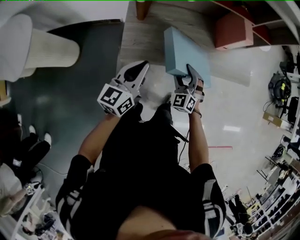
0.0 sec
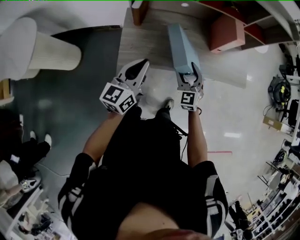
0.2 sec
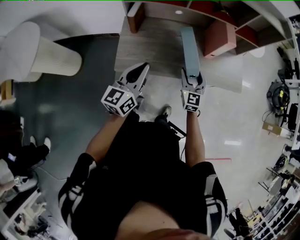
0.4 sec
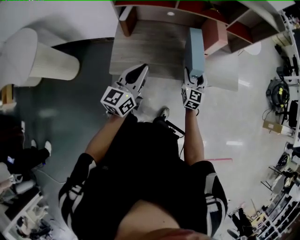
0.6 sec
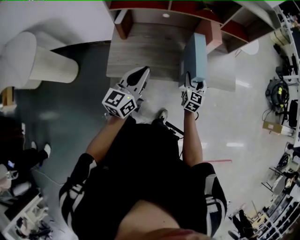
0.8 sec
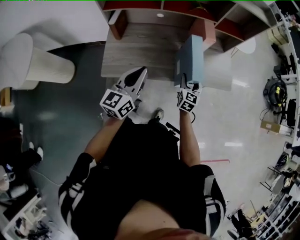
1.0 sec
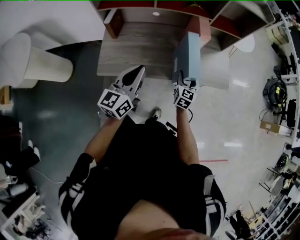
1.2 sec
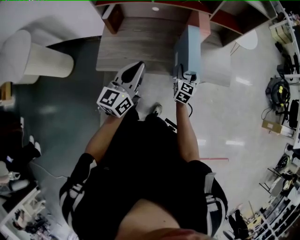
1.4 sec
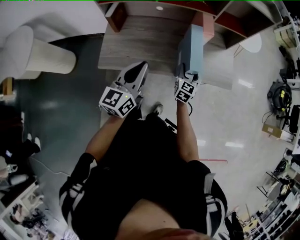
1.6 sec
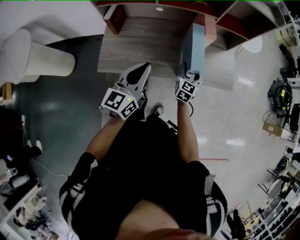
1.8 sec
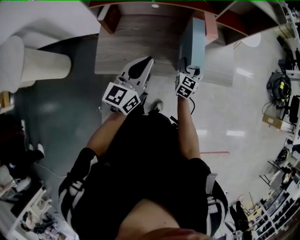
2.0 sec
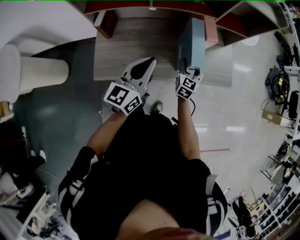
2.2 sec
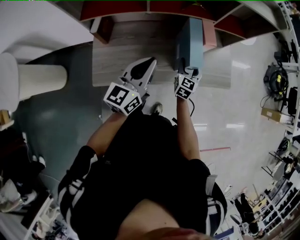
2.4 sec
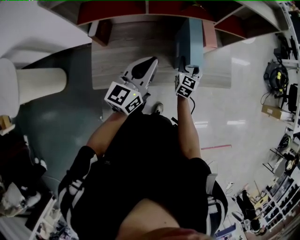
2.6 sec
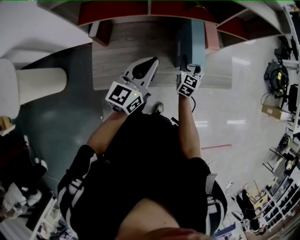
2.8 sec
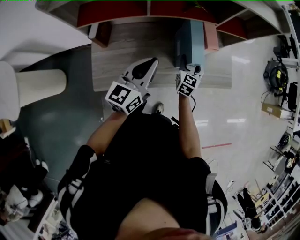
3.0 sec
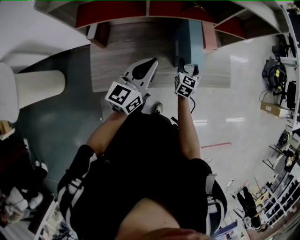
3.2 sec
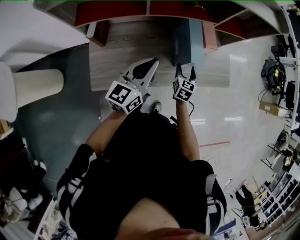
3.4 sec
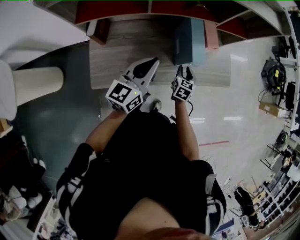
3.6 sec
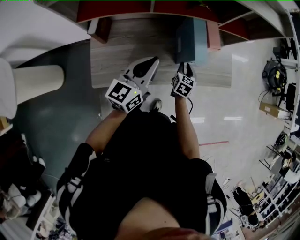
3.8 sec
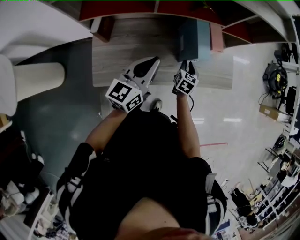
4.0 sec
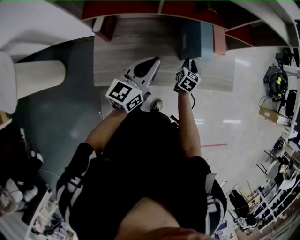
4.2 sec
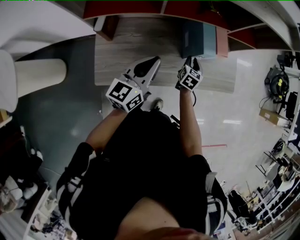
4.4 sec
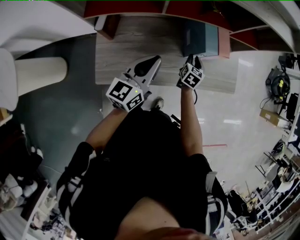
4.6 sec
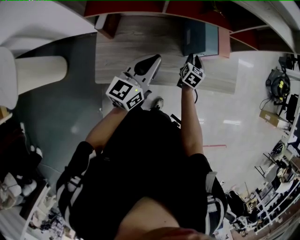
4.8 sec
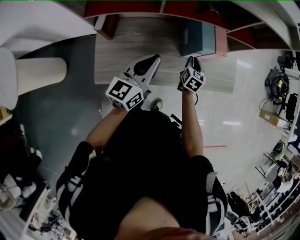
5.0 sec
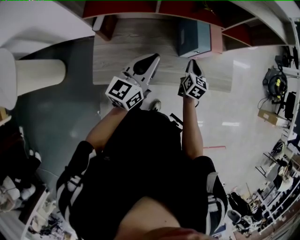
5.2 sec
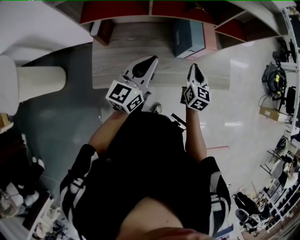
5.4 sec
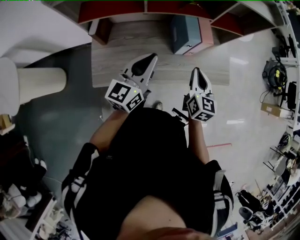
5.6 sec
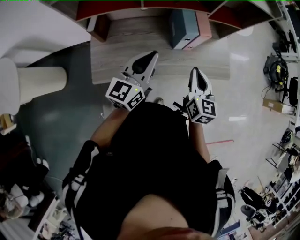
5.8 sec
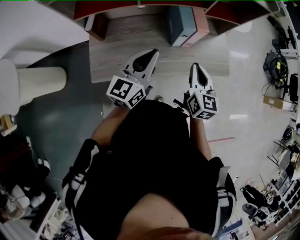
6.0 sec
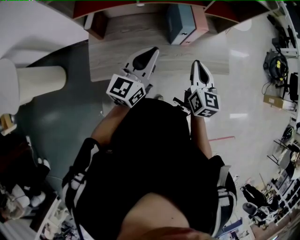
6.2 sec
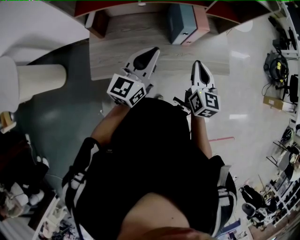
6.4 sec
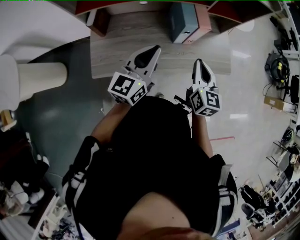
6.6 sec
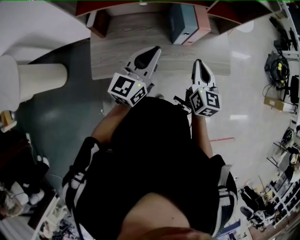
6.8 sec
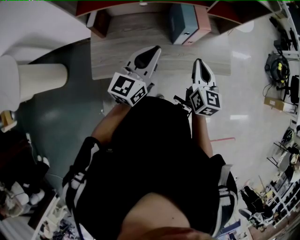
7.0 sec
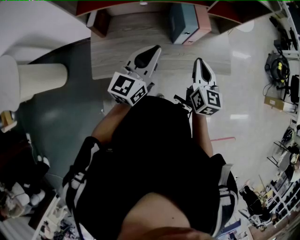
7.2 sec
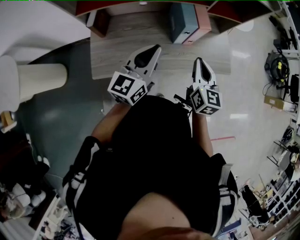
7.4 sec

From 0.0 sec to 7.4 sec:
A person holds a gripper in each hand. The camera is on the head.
From 0.0 sec to 1.4 sec: The right gripper travels to the right and forward by approximately 25 cm, and twists roughly 50 degrees clockwise, seen from behind. Meanwhile the left gripper shifts roughly 20 cm to the right and upward.
From 1.4 sec to 3.0 sec: The left gripper is displaced forward by roughly 15 cm. The right gripper shifts roughly 15 cm forward and to the left.
From 3.0 sec to 4.4 sec: The right gripper is displaced downward by approximately 5 cm, and closes.
From 4.4 sec to 6.0 sec: The left gripper goes roughly 5 cm to the right. Meanwhile the right gripper heads upward and backward, covering roughly 25 cm, and rotates some 30 degrees.
From 6.0 sec to 7.4 sec: Both grippers stay about where they are.

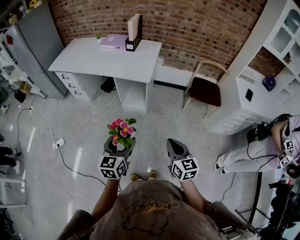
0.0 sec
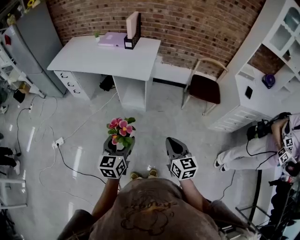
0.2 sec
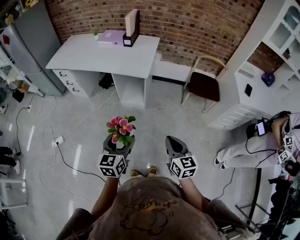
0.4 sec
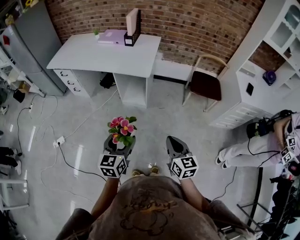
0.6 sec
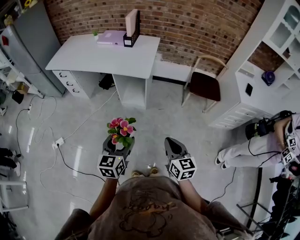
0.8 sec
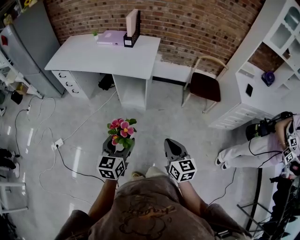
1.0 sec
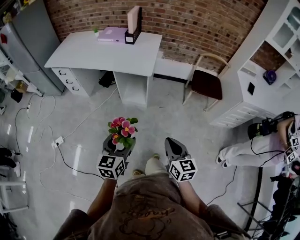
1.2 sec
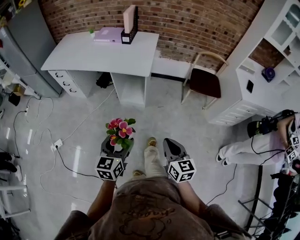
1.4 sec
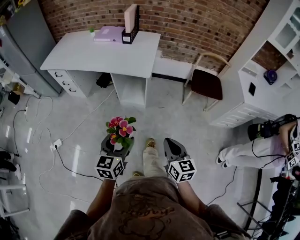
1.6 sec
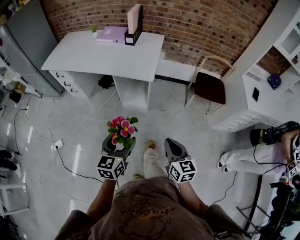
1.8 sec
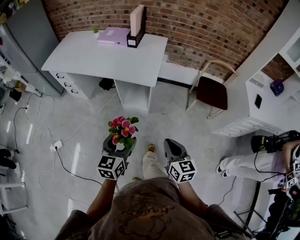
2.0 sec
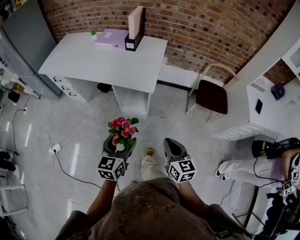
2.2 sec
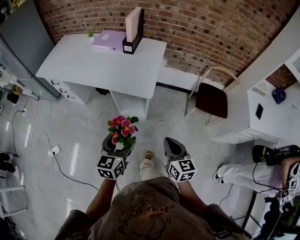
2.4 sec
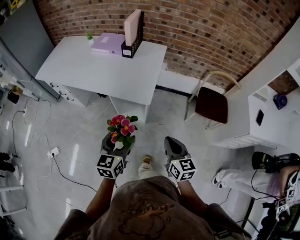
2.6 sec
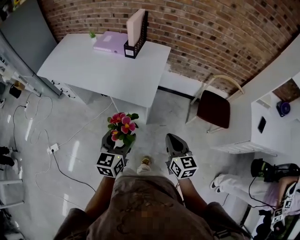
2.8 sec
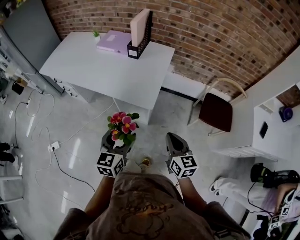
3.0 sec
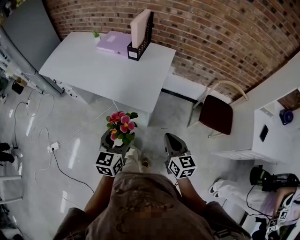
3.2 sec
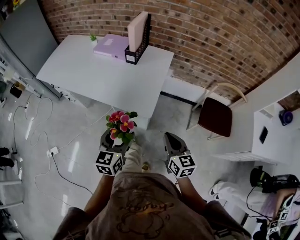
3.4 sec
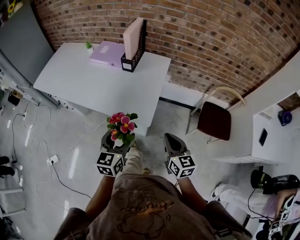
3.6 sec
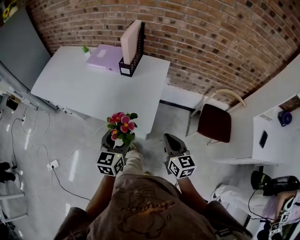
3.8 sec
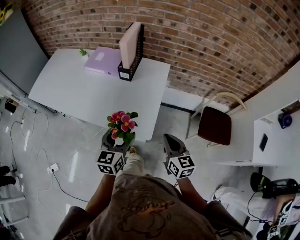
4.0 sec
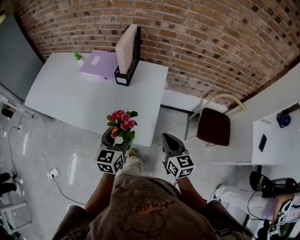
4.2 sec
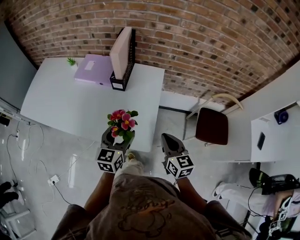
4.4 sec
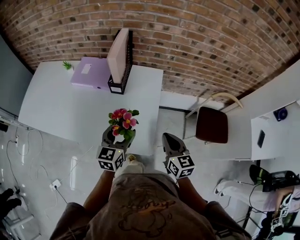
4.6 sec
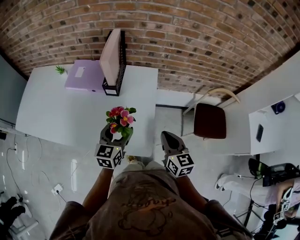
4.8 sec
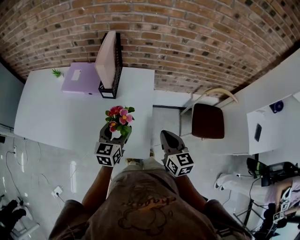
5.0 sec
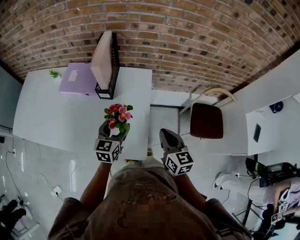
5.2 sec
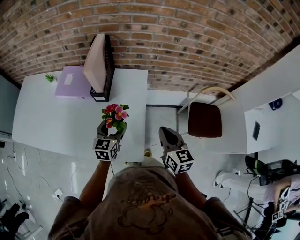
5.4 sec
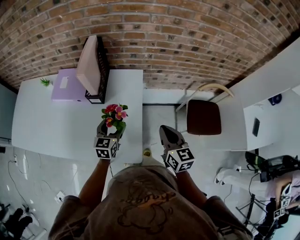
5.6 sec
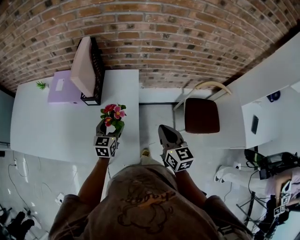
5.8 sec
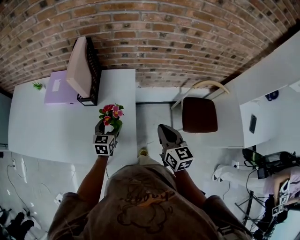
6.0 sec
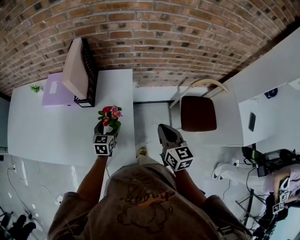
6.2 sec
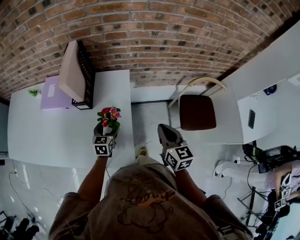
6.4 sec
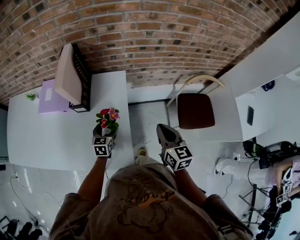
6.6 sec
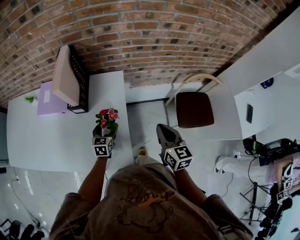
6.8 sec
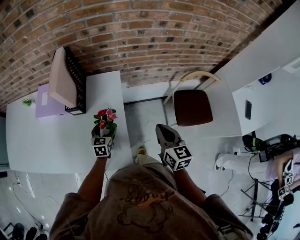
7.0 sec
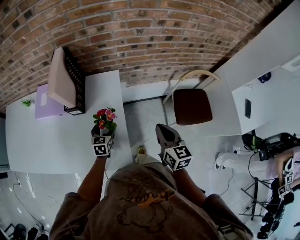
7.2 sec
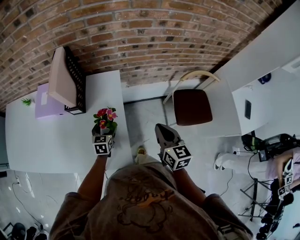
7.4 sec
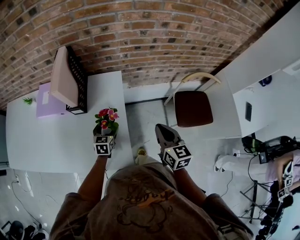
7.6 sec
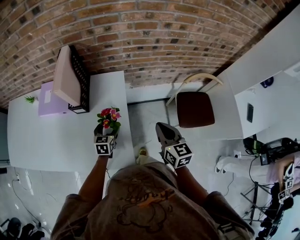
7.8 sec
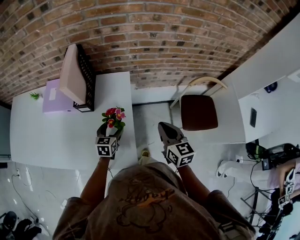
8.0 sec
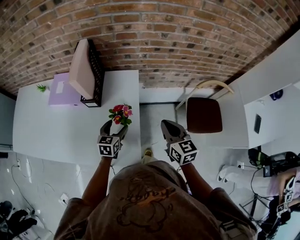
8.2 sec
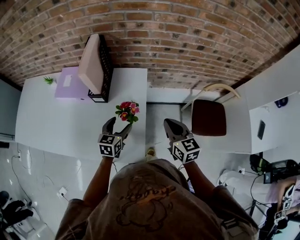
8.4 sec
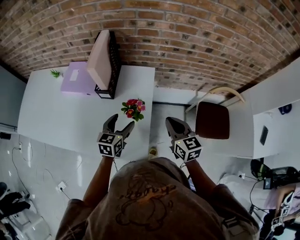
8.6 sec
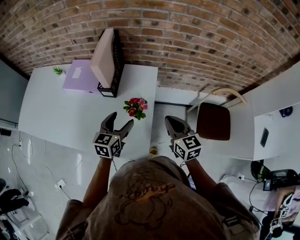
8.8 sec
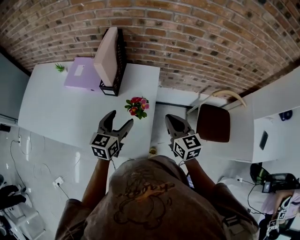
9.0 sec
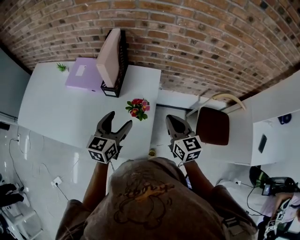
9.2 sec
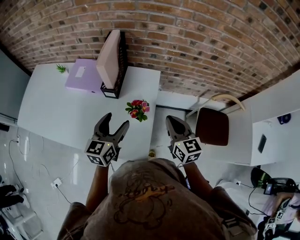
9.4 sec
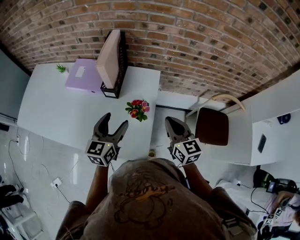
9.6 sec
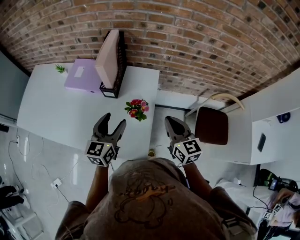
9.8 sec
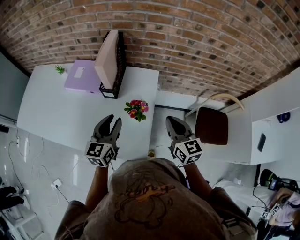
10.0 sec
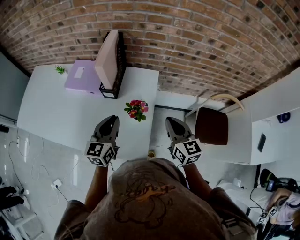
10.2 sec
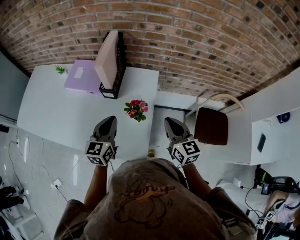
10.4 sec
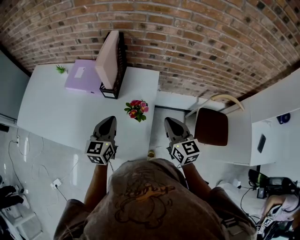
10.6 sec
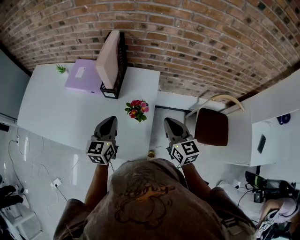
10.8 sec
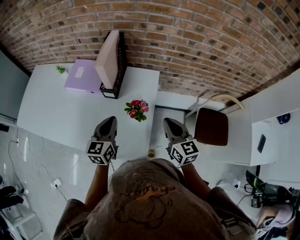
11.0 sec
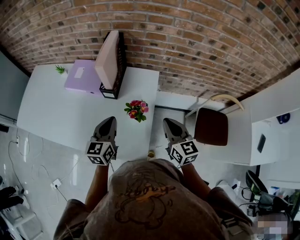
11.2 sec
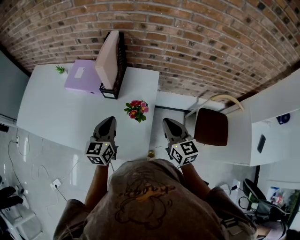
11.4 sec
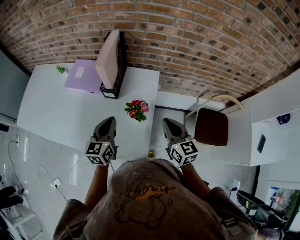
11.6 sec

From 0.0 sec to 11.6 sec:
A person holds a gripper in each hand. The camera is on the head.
From 0.0 sec to 1.4 sec: There are only small adjustments of the grippers.
From 1.4 sec to 2.8 sec: The two grippers go about 30 cm forward.
From 2.8 sec to 4.4 sec: Both grippers travel together forward, about 30 cm.
From 4.4 sec to 5.8 sec: The right gripper heads forward and to the right, covering approximately 15 cm. Meanwhile the left gripper heads forward and downward, covering approximately 20 cm.
From 5.8 sec to 7.2 sec: The right gripper shifts approximately 5 cm to the right. The left gripper is displaced downward by some 10 cm.
From 7.2 sec to 8.8 sec: The right gripper travels to the left by some 10 cm, and changes its angle by roughly 20 degrees, while the left gripper goes about 15 cm upward.
From 8.8 sec to 10.2 sec: The left gripper heads upward, covering some 5 cm, and closes up.
From 10.2 sec to 11.6 sec: The grippers make only small movements.

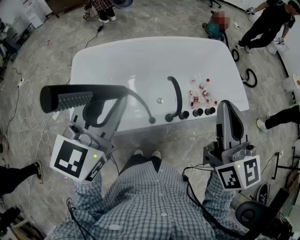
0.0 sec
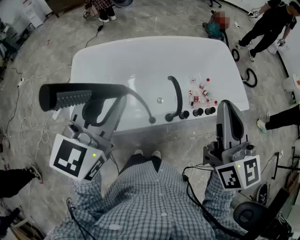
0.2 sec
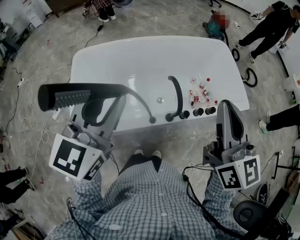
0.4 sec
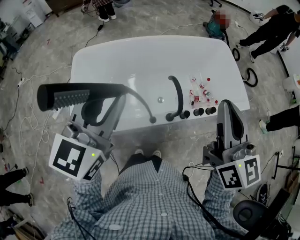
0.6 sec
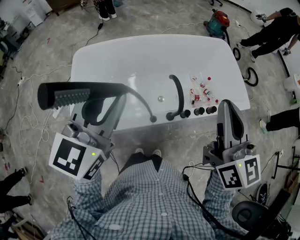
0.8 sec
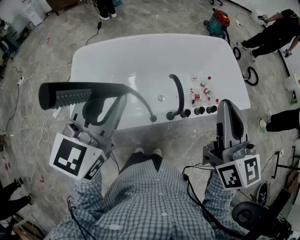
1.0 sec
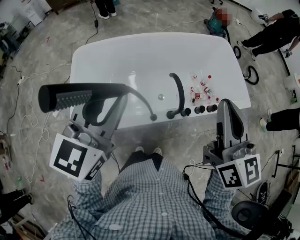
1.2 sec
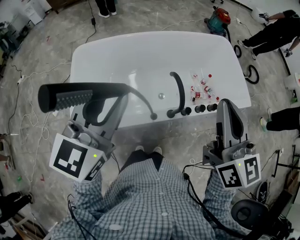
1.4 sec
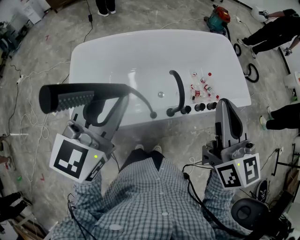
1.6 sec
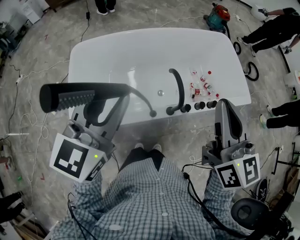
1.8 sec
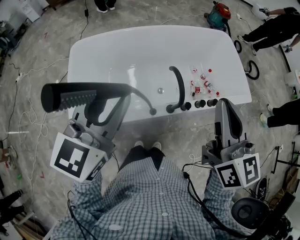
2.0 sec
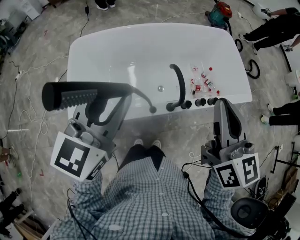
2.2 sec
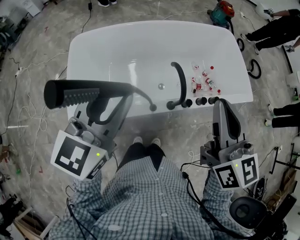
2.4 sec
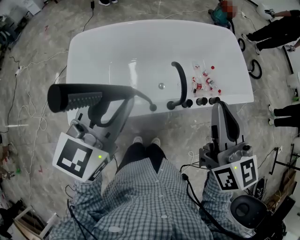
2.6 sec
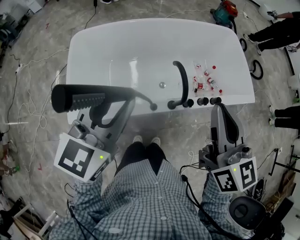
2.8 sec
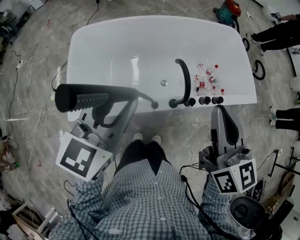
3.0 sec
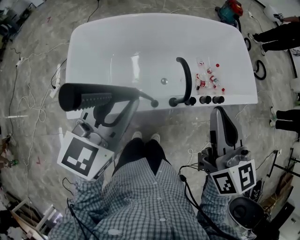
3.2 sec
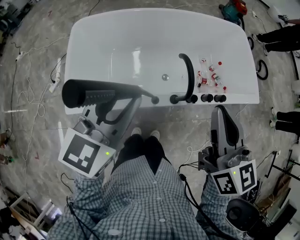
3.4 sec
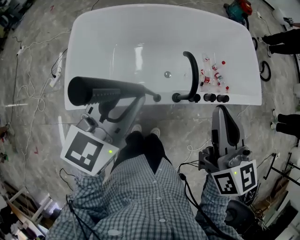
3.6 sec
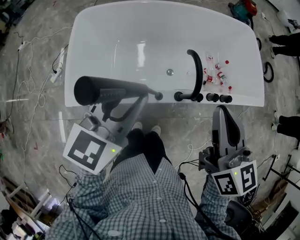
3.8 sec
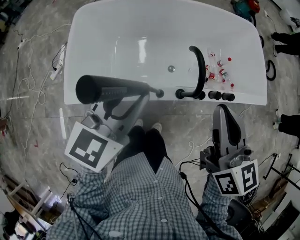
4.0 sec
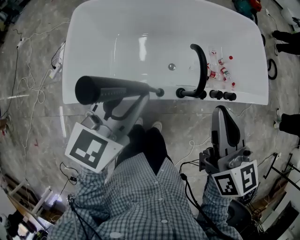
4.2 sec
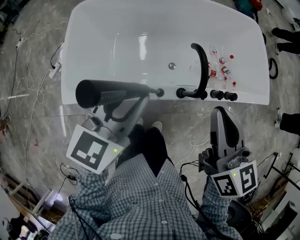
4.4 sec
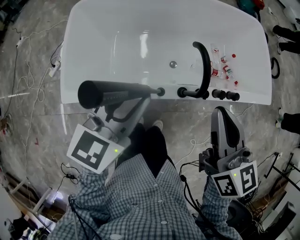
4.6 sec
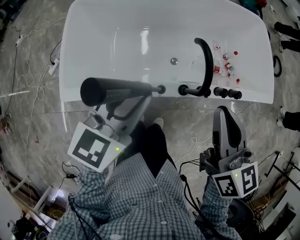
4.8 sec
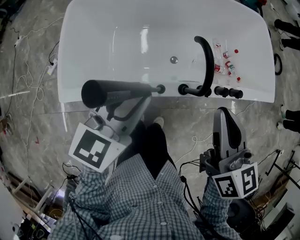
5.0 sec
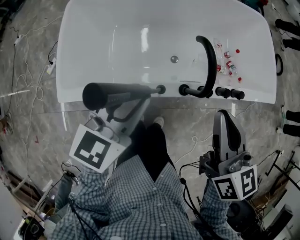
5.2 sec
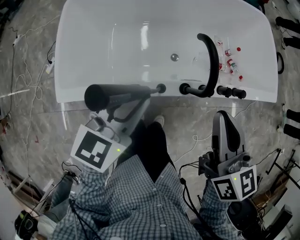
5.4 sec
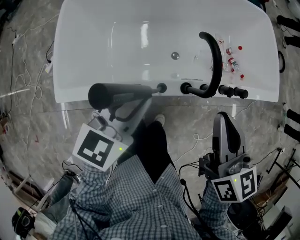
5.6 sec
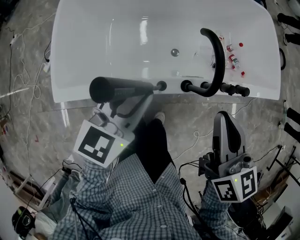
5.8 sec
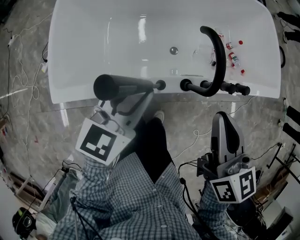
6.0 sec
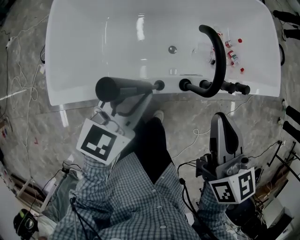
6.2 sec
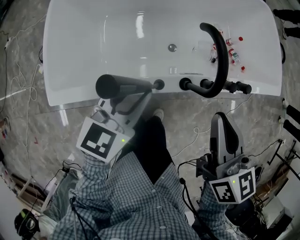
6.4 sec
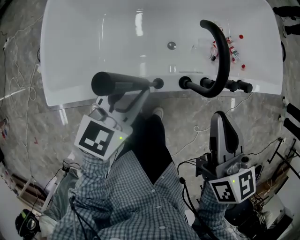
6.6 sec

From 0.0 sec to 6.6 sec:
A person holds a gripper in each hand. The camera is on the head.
From 0.0 sec to 1.6 sec: The grippers stay close to where they were, moving slightly.
From 1.6 sec to 3.2 sec: The two grippers go some 10 cm downward.
From 3.2 sec to 5.0 sec: Both grippers travel together downward, roughly 15 cm.
From 5.0 sec to 6.6 sec: Both grippers travel together downward, about 10 cm.
